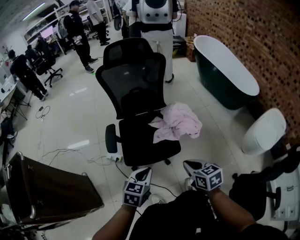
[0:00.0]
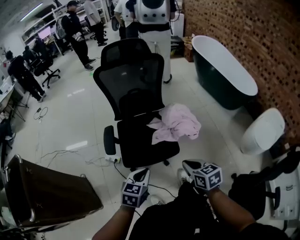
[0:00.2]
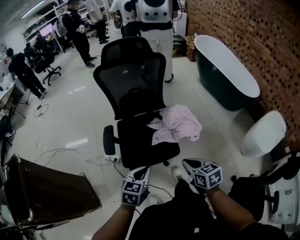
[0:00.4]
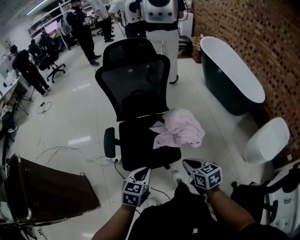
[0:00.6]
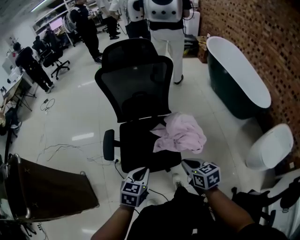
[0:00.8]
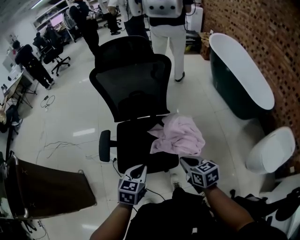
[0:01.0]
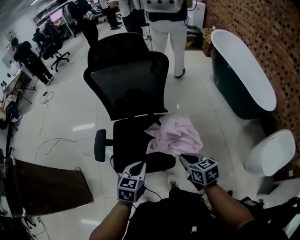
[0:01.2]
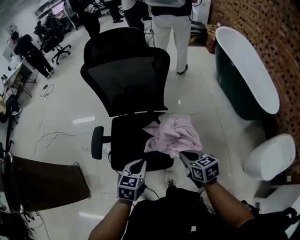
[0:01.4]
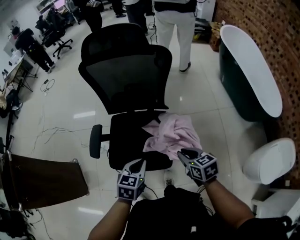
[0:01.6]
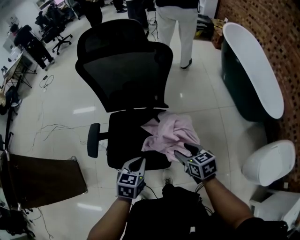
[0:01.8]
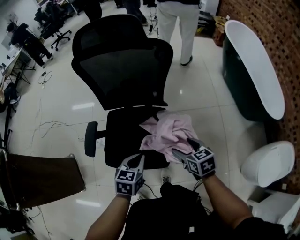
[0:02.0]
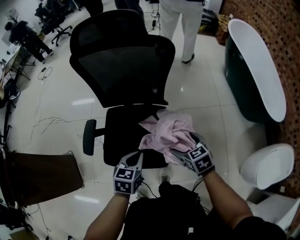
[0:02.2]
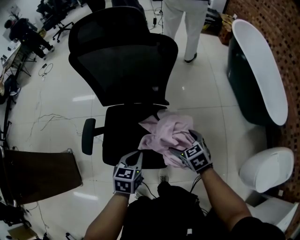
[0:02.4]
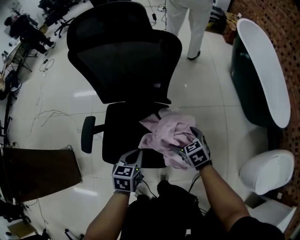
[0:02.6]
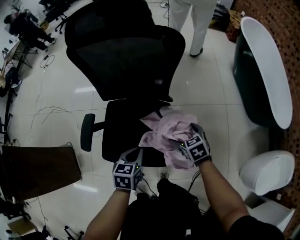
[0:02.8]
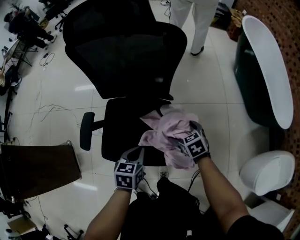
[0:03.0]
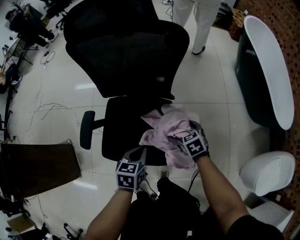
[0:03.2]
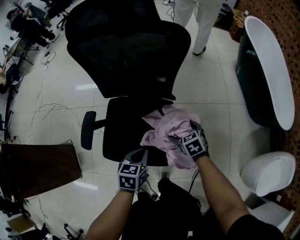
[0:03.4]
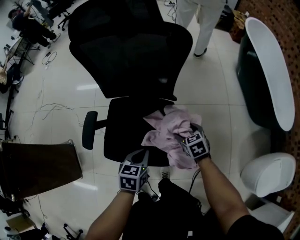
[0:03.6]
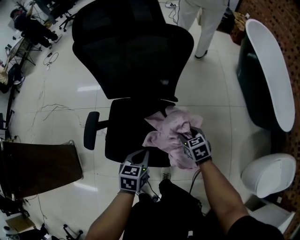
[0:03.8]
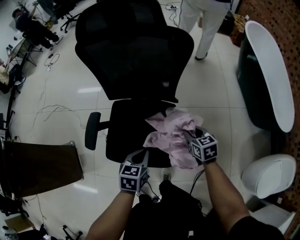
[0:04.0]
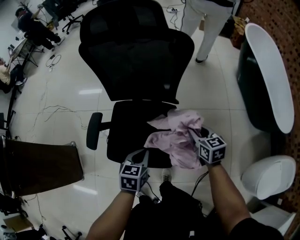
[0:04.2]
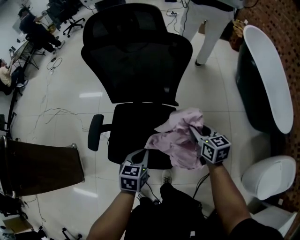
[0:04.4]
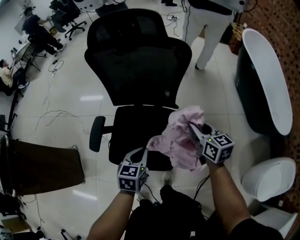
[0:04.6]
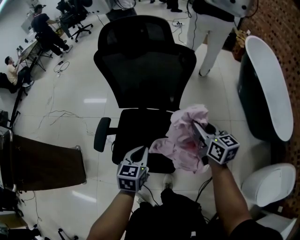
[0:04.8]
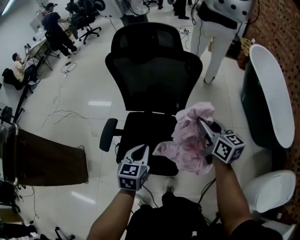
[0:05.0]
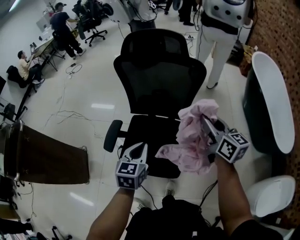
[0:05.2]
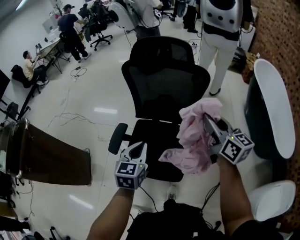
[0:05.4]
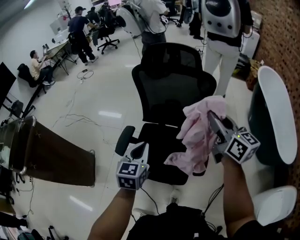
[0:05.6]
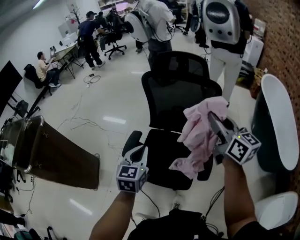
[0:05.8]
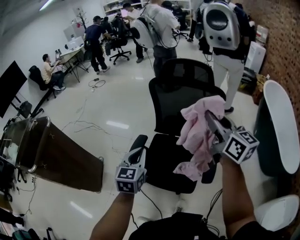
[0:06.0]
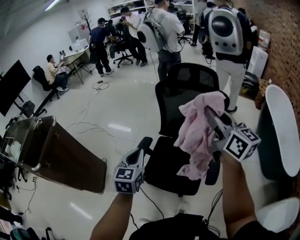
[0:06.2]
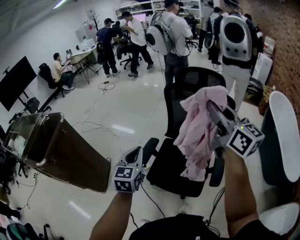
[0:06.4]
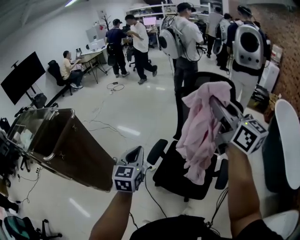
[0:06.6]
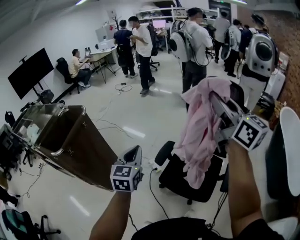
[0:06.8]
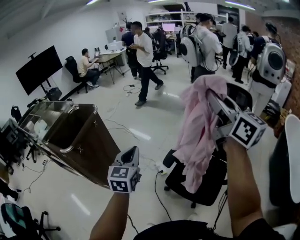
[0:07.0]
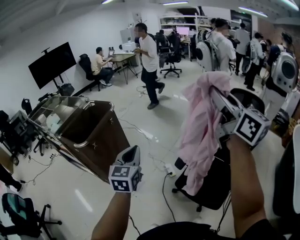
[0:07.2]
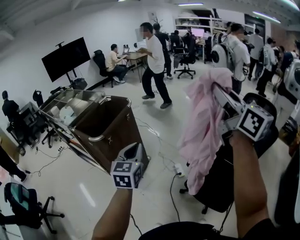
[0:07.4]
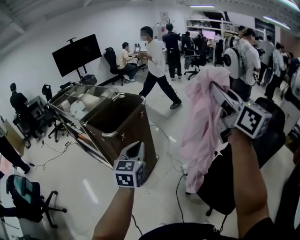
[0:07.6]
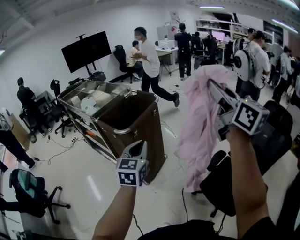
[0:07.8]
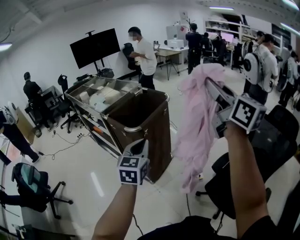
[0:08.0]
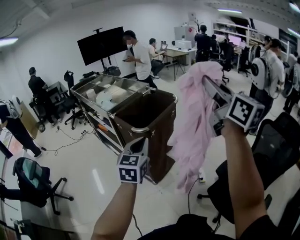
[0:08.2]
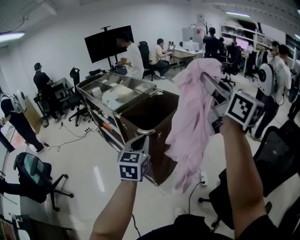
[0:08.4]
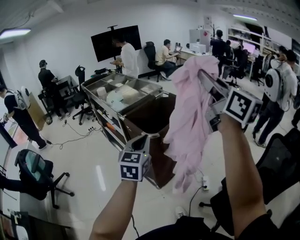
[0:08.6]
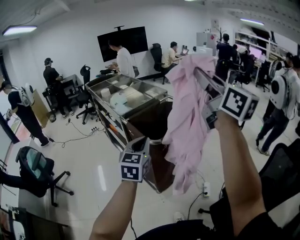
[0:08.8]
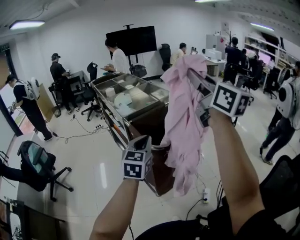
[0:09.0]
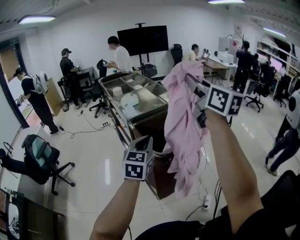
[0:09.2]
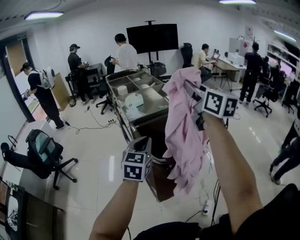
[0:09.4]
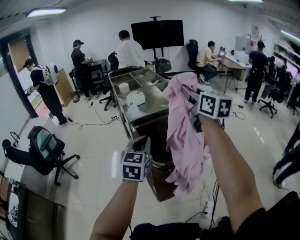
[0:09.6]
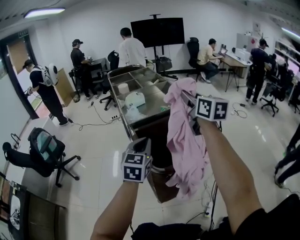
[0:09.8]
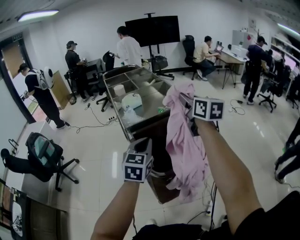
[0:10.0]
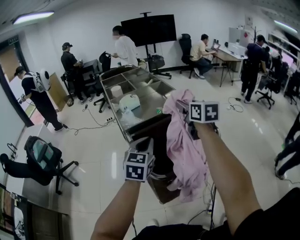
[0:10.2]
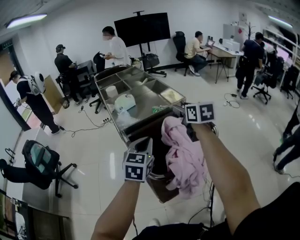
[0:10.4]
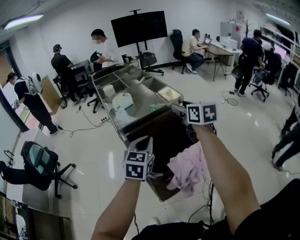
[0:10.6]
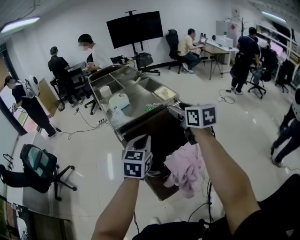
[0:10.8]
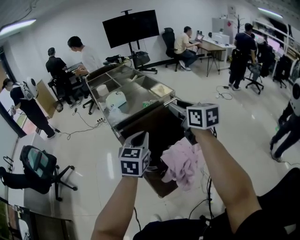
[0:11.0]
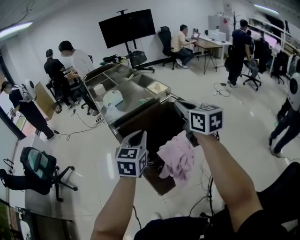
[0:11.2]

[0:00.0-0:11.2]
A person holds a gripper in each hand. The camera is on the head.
0:00.0 to 0:01.6: Both grippers travel together forward and to the right, about 25 cm.
0:01.6 to 0:03.2: The left gripper is displaced downward and forward by roughly 10 cm. The right gripper heads downward and forward, covering some 20 cm, rotates approximately 20 degrees, and opens up.
0:03.2 to 0:04.8: The left gripper shifts roughly 10 cm upward. Meanwhile the right gripper goes approximately 25 cm upward, angles its fingers upward, by approximately 40 degrees, and closes.
0:04.8 to 0:06.4: The right gripper moves upward and to the left, some 40 cm, and swivels some 30 degrees, while the left gripper moves to the left and upward, roughly 35 cm, and turns by roughly 30 degrees.
0:06.4 to 0:08.0: The pair of grippers is taken approximately 50 cm. The left gripper changes its angle by some 30 degrees; the right gripper swivels about 30 degrees.
0:08.0 to 0:09.6: The left gripper moves about 25 cm, and rotates some 30 degrees, while the right gripper ends up roughly 50 cm from where it was, and rotates approximately 30 degrees.
0:09.6 to 0:11.2: The right gripper travels downward by roughly 10 cm, while the left gripper goes roughly 5 cm to the right.

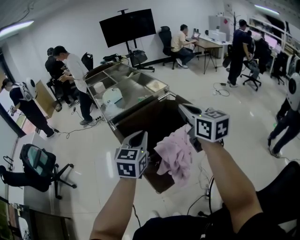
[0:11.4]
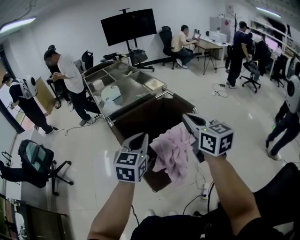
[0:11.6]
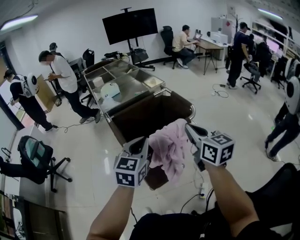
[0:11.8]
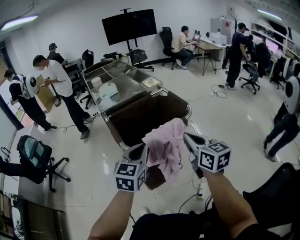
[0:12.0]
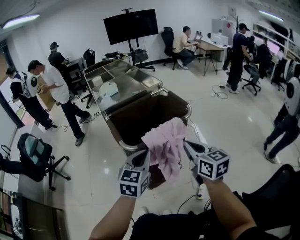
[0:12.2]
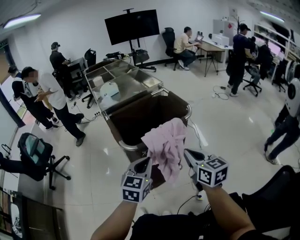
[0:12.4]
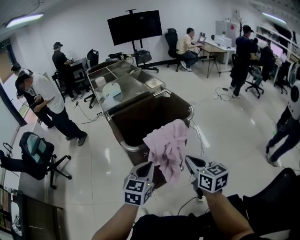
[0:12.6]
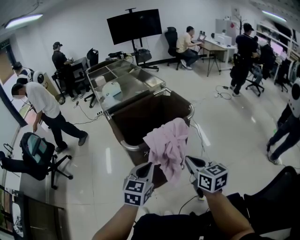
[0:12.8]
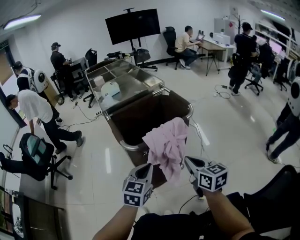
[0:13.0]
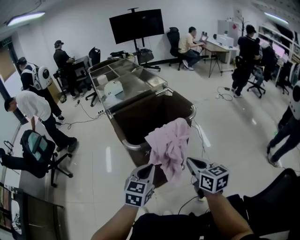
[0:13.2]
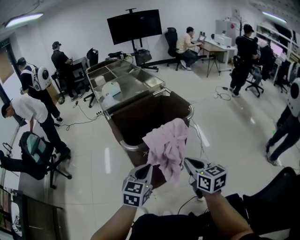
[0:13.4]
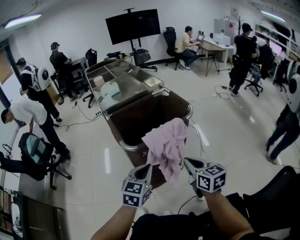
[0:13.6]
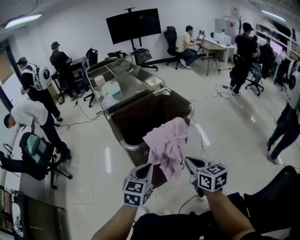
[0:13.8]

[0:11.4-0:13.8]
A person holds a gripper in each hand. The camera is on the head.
0:11.4 to 0:12.6: Both grippers move backward and downward, about 20 cm.
0:12.6 to 0:13.8: There are only small adjustments of the grippers.

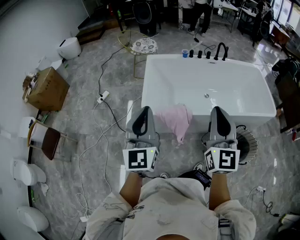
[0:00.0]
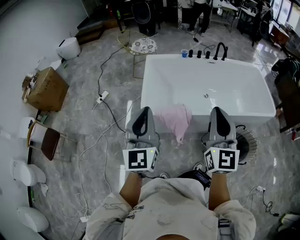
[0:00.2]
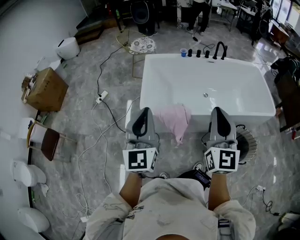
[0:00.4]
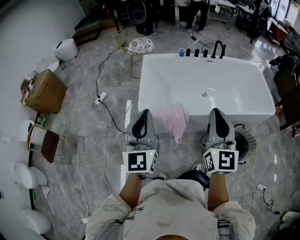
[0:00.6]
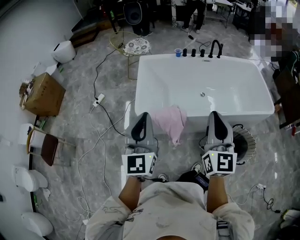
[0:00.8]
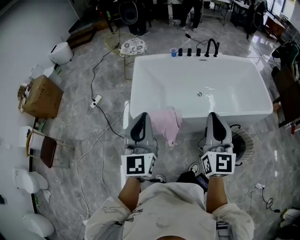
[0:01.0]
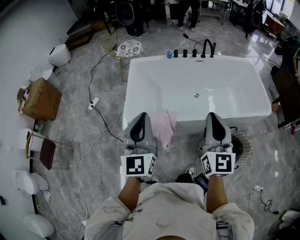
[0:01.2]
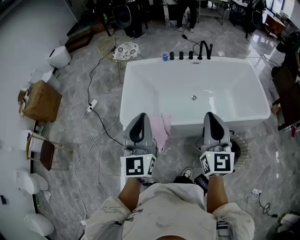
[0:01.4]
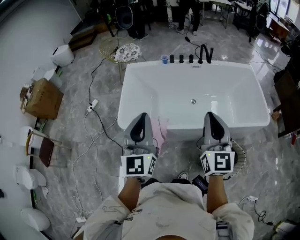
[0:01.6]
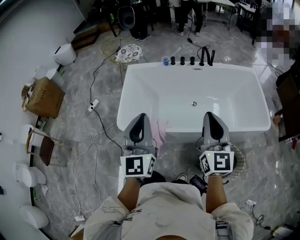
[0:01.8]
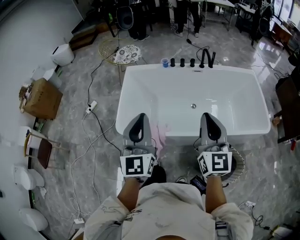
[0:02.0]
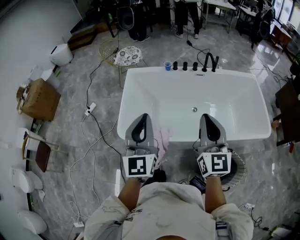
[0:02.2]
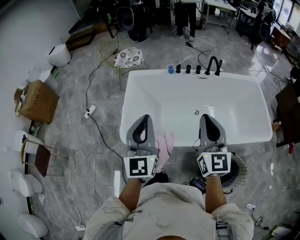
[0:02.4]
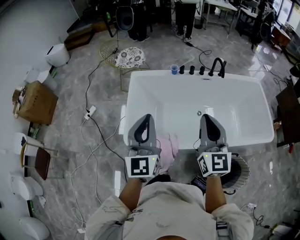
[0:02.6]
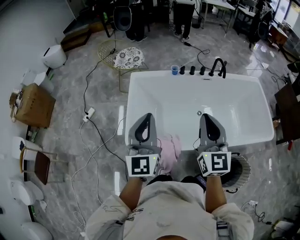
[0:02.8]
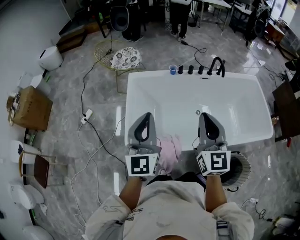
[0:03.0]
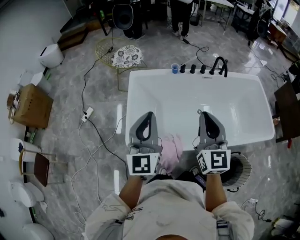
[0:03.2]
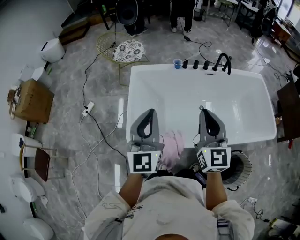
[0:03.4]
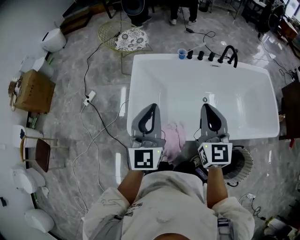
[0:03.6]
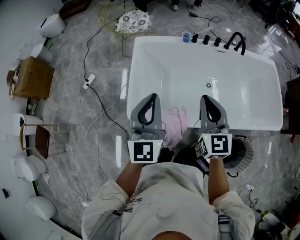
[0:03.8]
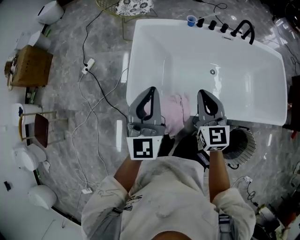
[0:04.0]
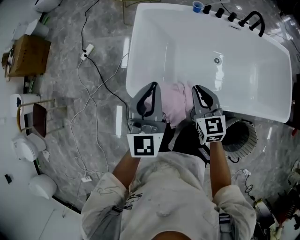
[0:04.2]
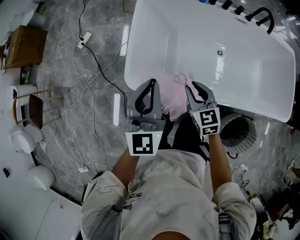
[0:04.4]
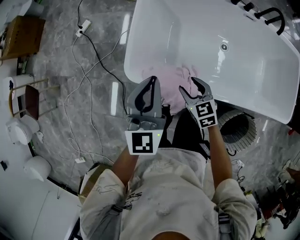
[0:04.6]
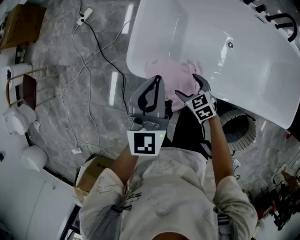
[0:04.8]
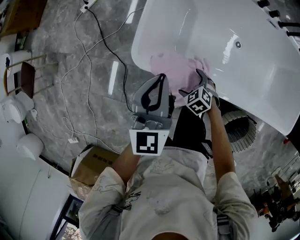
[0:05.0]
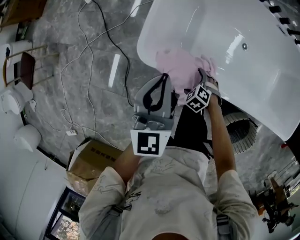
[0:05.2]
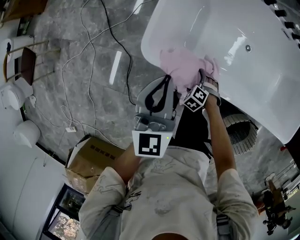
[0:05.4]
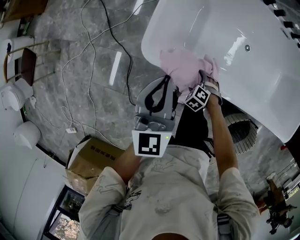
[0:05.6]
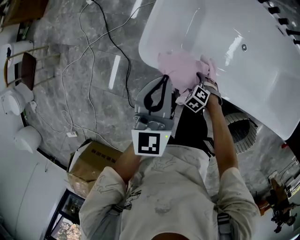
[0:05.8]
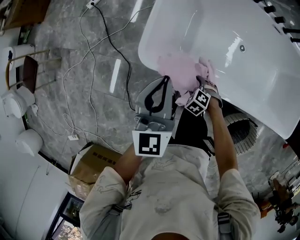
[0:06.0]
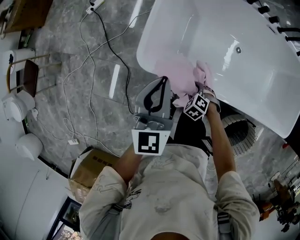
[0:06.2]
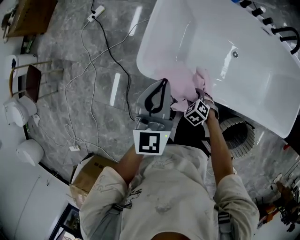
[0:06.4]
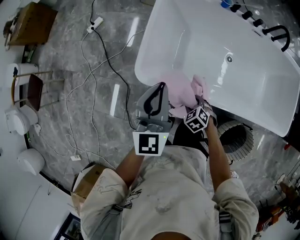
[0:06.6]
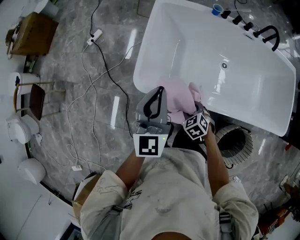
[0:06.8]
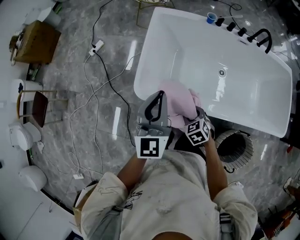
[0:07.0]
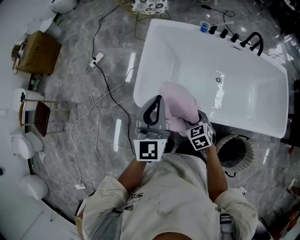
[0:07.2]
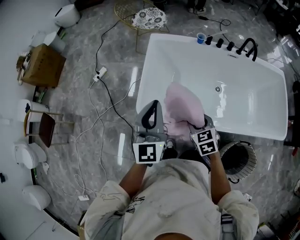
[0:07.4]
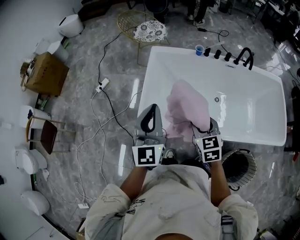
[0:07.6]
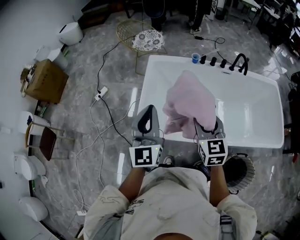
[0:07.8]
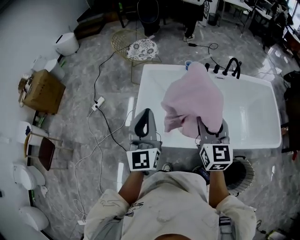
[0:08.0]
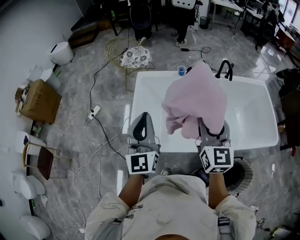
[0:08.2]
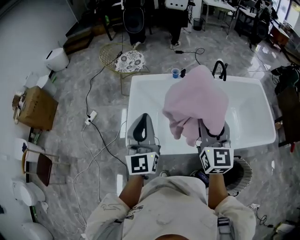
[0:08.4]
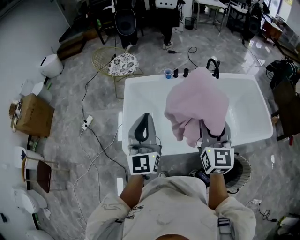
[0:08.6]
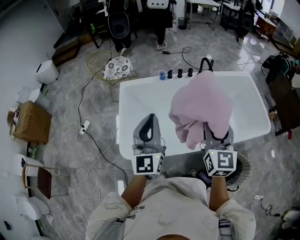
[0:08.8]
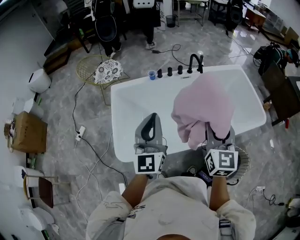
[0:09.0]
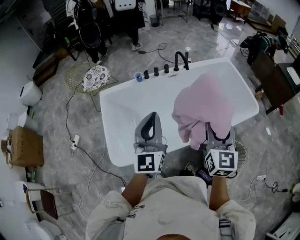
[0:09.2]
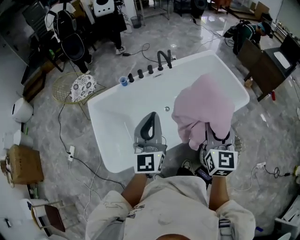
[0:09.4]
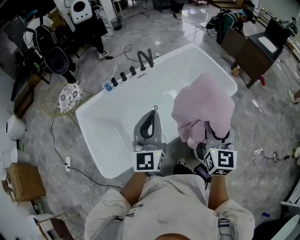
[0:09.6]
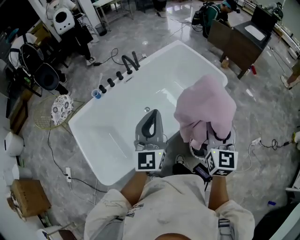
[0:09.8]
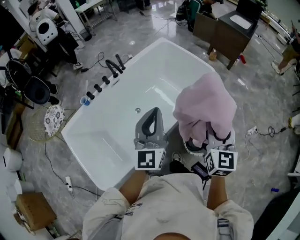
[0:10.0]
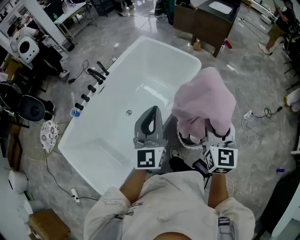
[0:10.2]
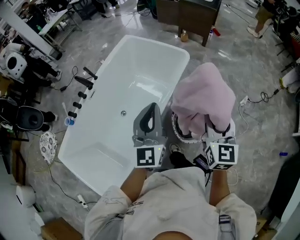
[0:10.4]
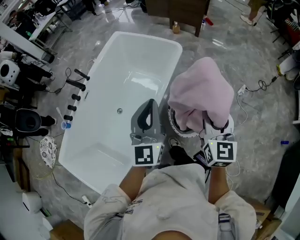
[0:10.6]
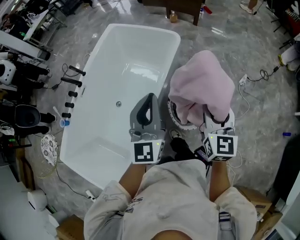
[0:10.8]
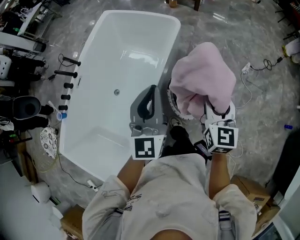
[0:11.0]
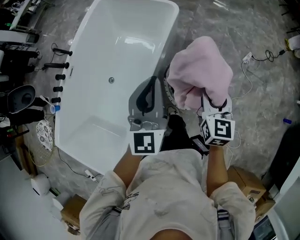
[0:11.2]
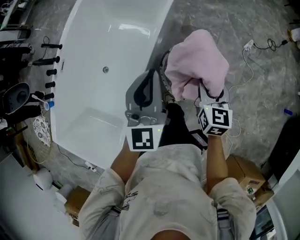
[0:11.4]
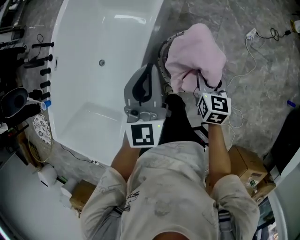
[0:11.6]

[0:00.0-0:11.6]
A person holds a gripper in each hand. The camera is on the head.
0:00.0 to 0:01.4: The two grippers go about 20 cm to the right and forward.
0:01.4 to 0:02.8: The grippers both shift forward and to the left by roughly 25 cm.
0:02.8 to 0:04.4: The right gripper is displaced downward by some 30 cm, and tips its fingers downward by some 40 degrees. The left gripper travels downward by some 15 cm.
0:04.4 to 0:05.8: The left gripper shifts roughly 10 cm downward. The right gripper moves downward, approximately 30 cm, tilts its fingers roughly 50 degrees downward, and opens its fingers.
0:05.8 to 0:07.2: The right gripper heads upward, covering about 25 cm, and turns by about 50 degrees, while the left gripper moves upward, about 15 cm.
0:07.2 to 0:08.8: The left gripper changes place by roughly 20 cm. Meanwhile the right gripper shifts some 35 cm upward, and points its fingers some 50 degrees further upward.
0:08.8 to 0:10.2: The left gripper ends up approximately 40 cm from where it was, and swivels roughly 50 degrees. The right gripper ends up roughly 40 cm from where it was, and swivels some 50 degrees.
0:10.2 to 0:11.6: The left gripper goes about 25 cm downward, to the right and forward, while the right gripper is displaced downward by roughly 30 cm, and rotates about 30 degrees.
